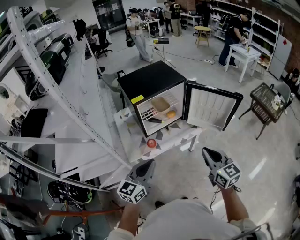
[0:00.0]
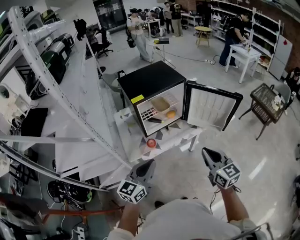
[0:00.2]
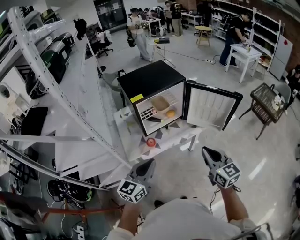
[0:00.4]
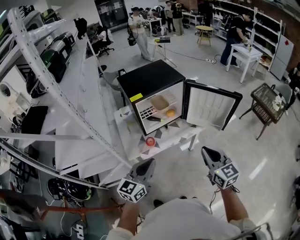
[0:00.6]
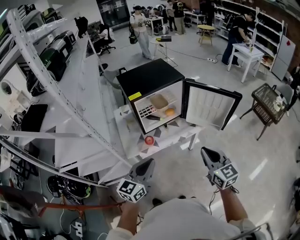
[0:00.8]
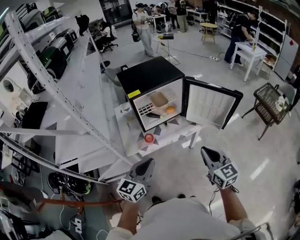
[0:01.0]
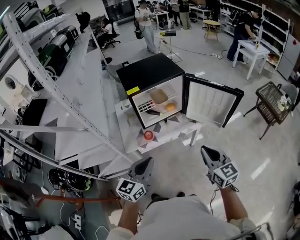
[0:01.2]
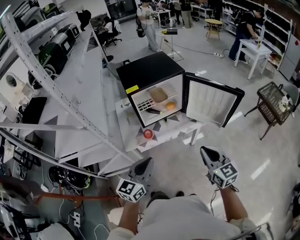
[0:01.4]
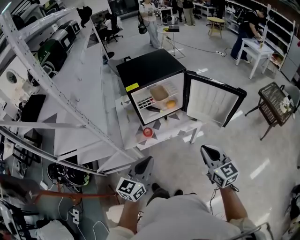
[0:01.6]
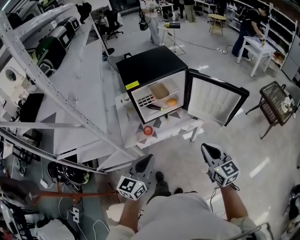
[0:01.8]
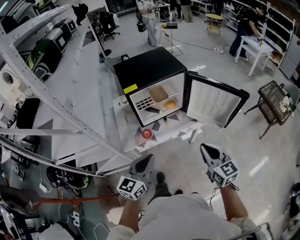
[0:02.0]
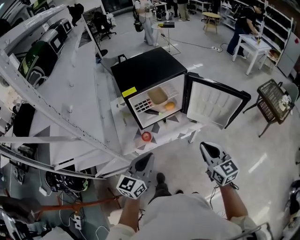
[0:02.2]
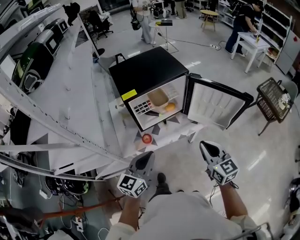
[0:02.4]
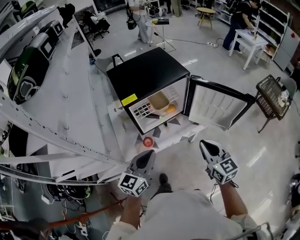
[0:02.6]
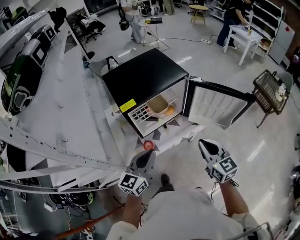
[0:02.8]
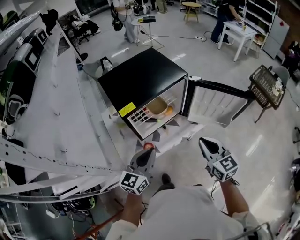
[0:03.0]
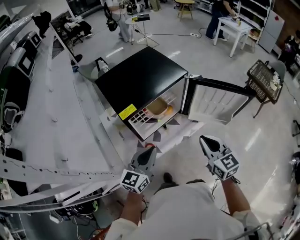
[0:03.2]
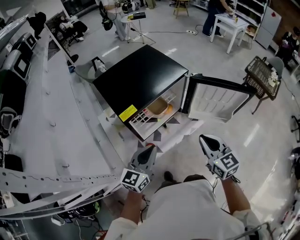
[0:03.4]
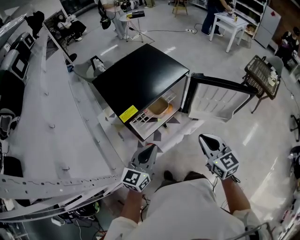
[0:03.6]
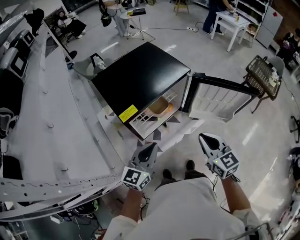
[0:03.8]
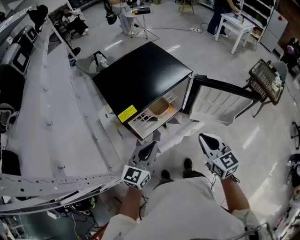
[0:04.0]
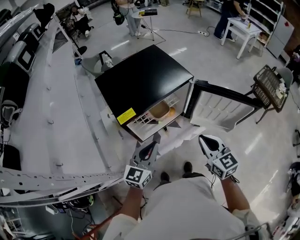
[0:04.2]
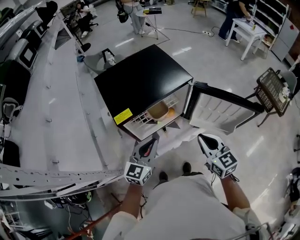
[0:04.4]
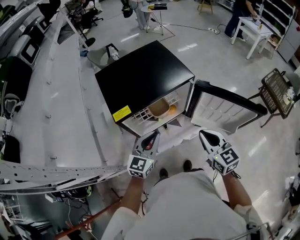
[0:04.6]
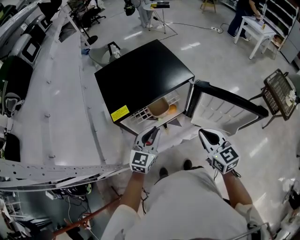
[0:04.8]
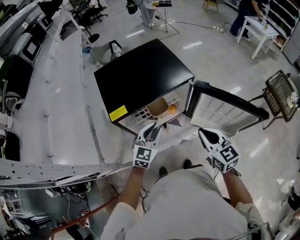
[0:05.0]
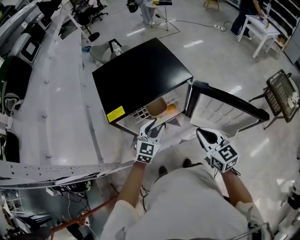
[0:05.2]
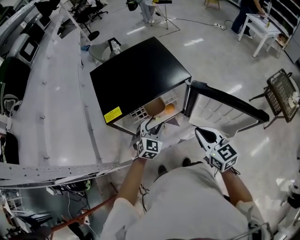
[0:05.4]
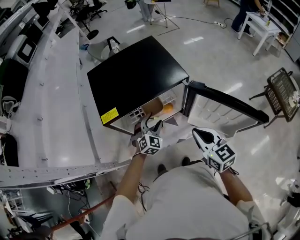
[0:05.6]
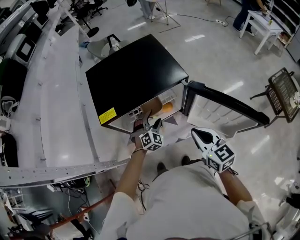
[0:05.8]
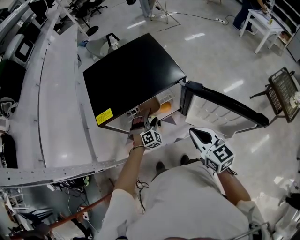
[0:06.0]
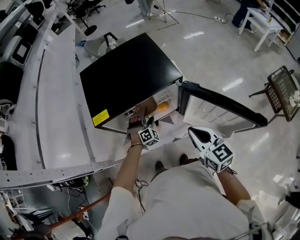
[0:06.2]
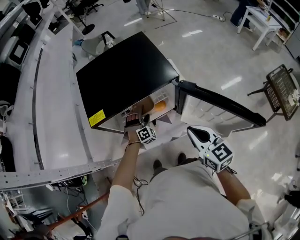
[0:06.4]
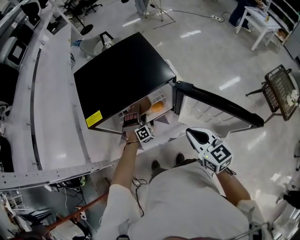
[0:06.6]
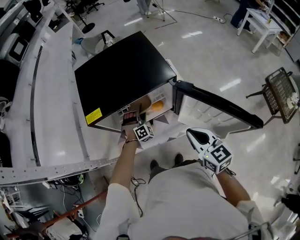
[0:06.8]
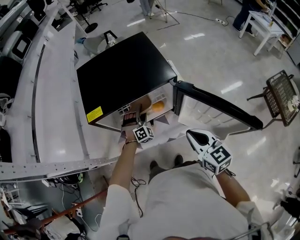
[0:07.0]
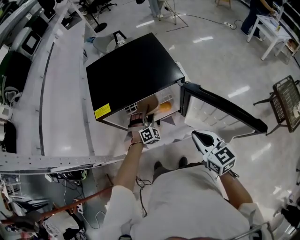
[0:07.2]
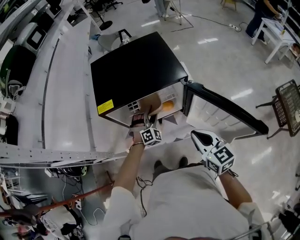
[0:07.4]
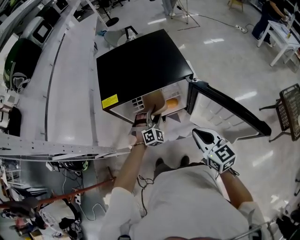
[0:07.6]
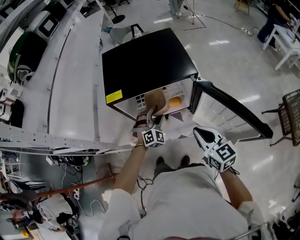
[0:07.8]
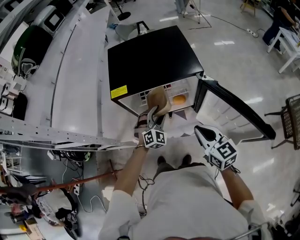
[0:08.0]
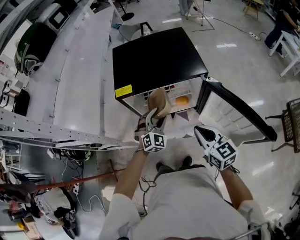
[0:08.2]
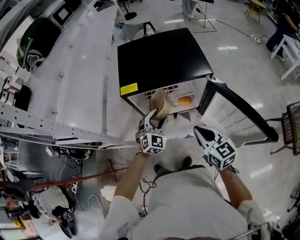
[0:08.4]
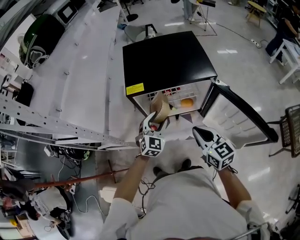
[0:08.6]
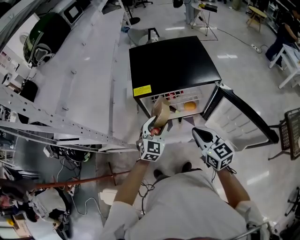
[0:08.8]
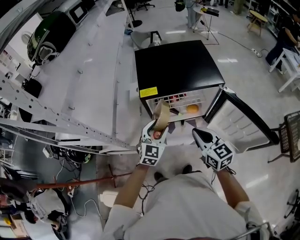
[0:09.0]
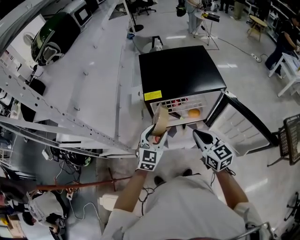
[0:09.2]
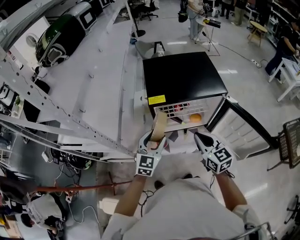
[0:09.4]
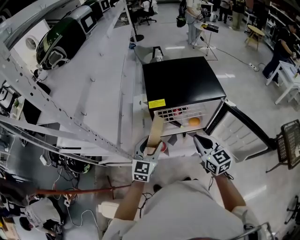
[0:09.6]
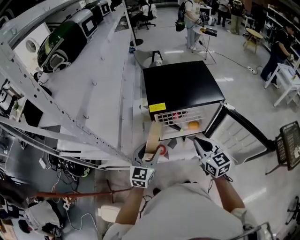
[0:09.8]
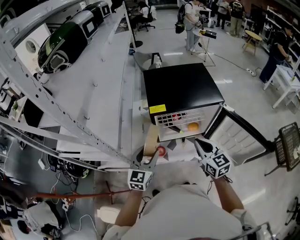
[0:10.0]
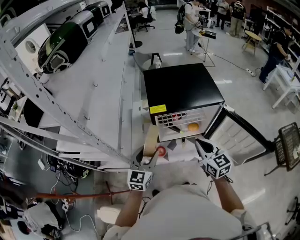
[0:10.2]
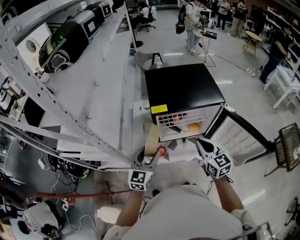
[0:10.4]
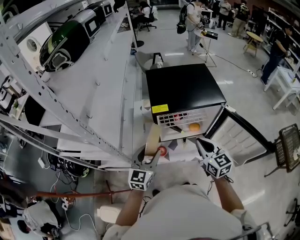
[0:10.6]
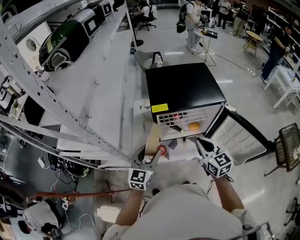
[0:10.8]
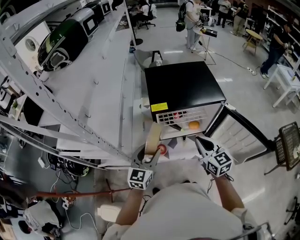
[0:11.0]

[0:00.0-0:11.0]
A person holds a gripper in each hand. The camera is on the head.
0:00.0 to 0:01.6: Both grippers move to the right, approximately 5 cm.
0:01.6 to 0:03.2: The left gripper goes roughly 25 cm forward, while the right gripper shifts roughly 20 cm forward and to the left.
0:03.2 to 0:04.8: The left gripper moves forward and to the right, about 15 cm. The right gripper goes approximately 10 cm forward.
0:04.8 to 0:06.2: The right gripper ends up approximately 5 cm from where it was. Meanwhile the left gripper travels downward and forward by approximately 25 cm, rolls clockwise, seen from behind, by approximately 50 degrees, and opens its fingers.
0:06.2 to 0:07.8: The left gripper travels upward and backward by approximately 10 cm.
0:07.8 to 0:09.4: The left gripper goes about 25 cm to the left, upward and backward, and twists approximately 40 degrees counterclockwise, seen from behind; the right gripper shifts approximately 15 cm to the left.
0:09.4 to 0:11.0: The left gripper moves approximately 5 cm.

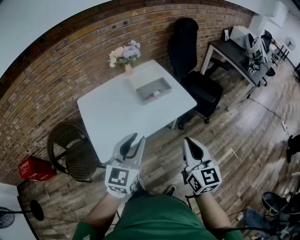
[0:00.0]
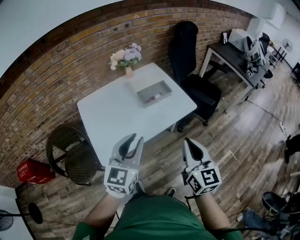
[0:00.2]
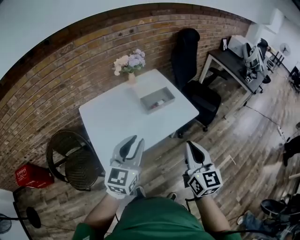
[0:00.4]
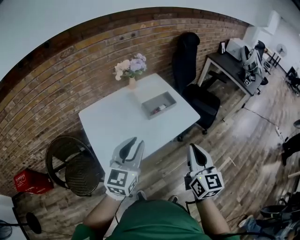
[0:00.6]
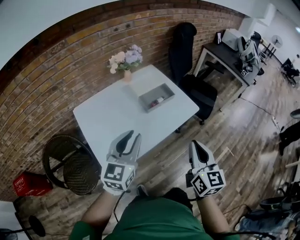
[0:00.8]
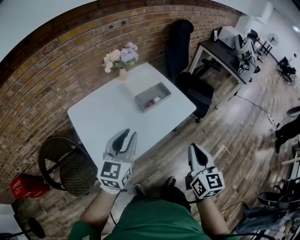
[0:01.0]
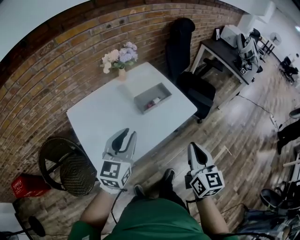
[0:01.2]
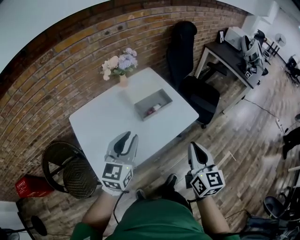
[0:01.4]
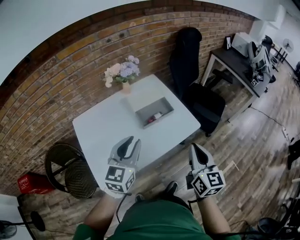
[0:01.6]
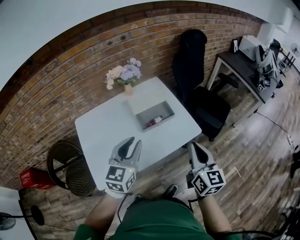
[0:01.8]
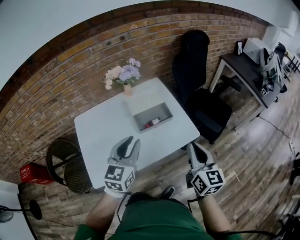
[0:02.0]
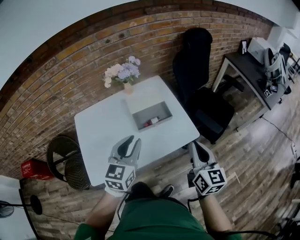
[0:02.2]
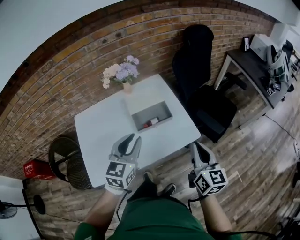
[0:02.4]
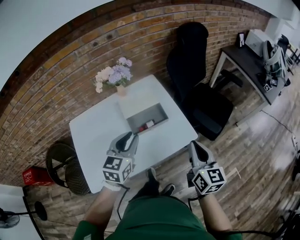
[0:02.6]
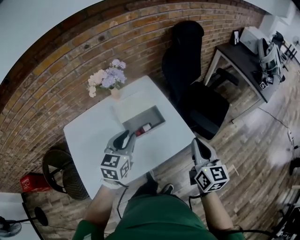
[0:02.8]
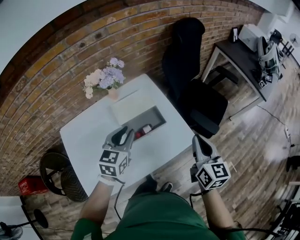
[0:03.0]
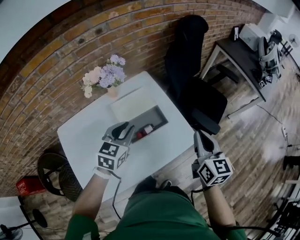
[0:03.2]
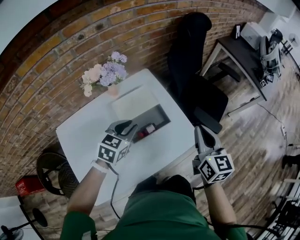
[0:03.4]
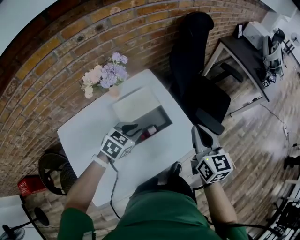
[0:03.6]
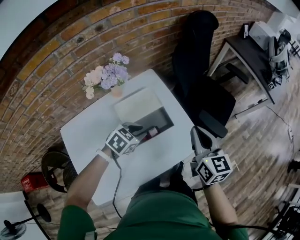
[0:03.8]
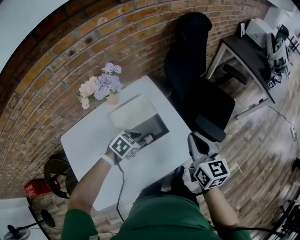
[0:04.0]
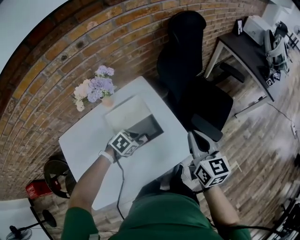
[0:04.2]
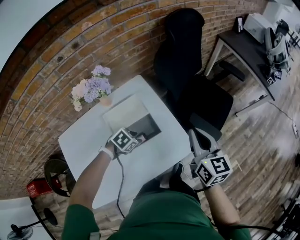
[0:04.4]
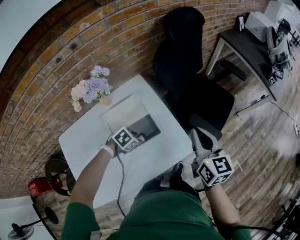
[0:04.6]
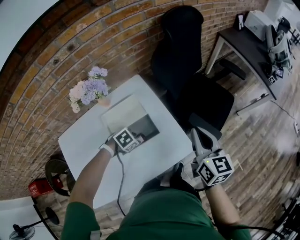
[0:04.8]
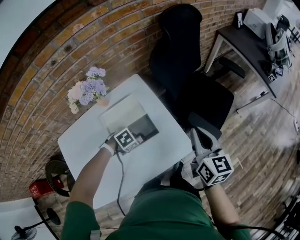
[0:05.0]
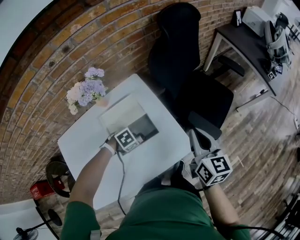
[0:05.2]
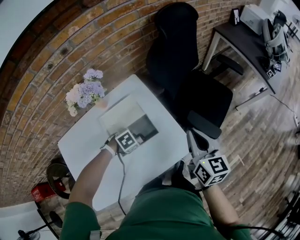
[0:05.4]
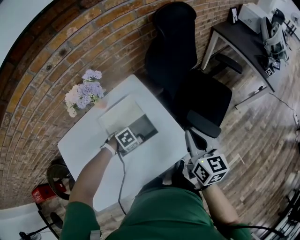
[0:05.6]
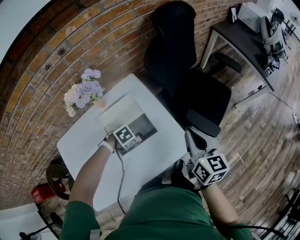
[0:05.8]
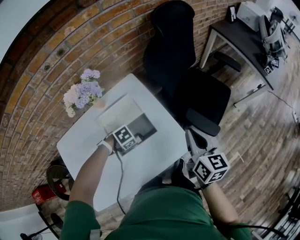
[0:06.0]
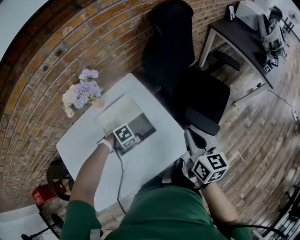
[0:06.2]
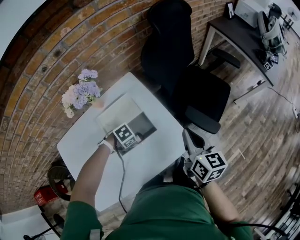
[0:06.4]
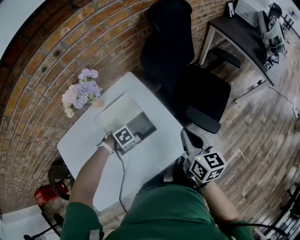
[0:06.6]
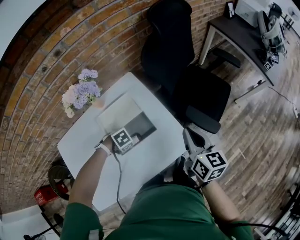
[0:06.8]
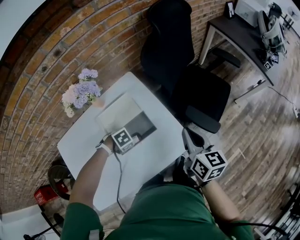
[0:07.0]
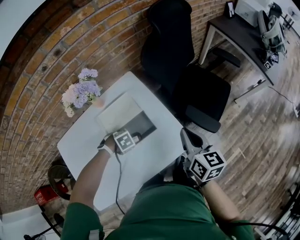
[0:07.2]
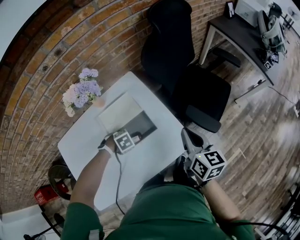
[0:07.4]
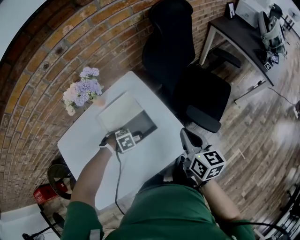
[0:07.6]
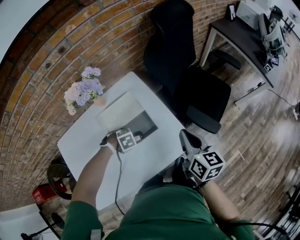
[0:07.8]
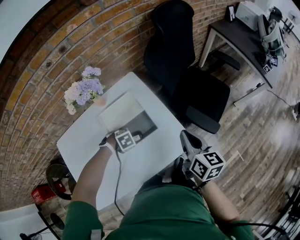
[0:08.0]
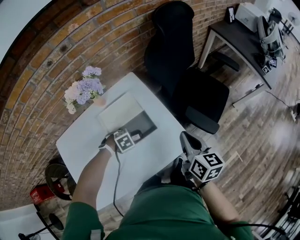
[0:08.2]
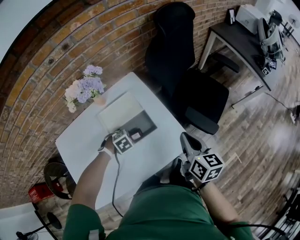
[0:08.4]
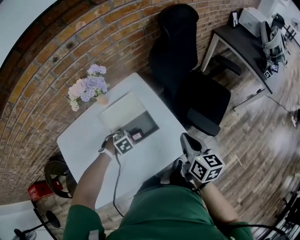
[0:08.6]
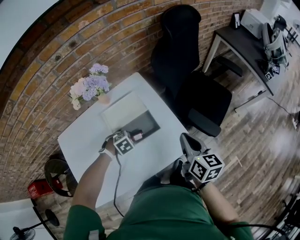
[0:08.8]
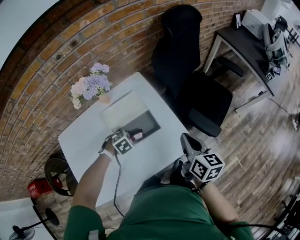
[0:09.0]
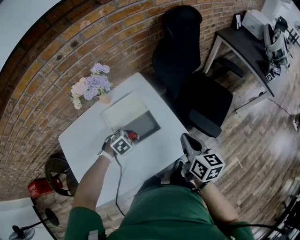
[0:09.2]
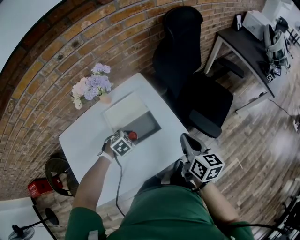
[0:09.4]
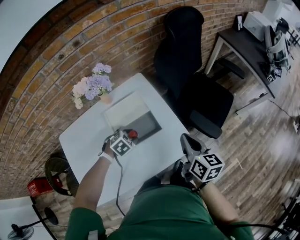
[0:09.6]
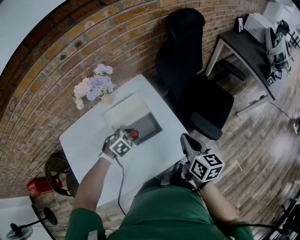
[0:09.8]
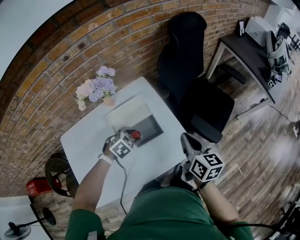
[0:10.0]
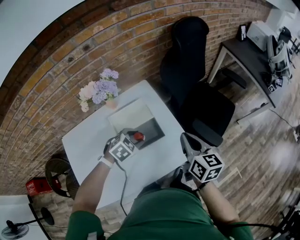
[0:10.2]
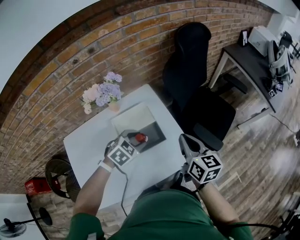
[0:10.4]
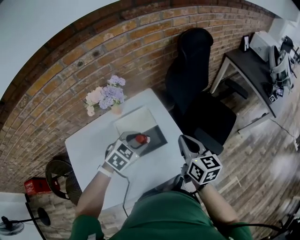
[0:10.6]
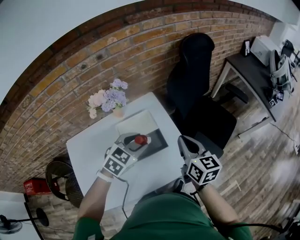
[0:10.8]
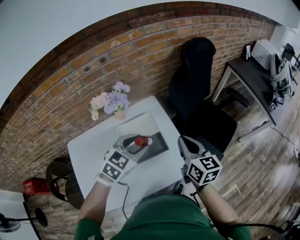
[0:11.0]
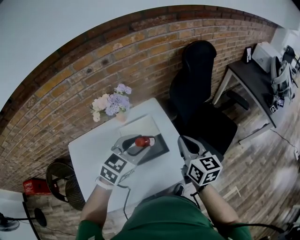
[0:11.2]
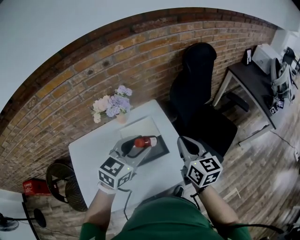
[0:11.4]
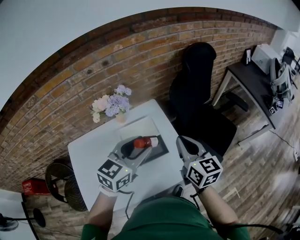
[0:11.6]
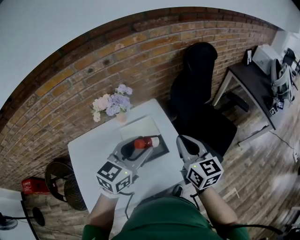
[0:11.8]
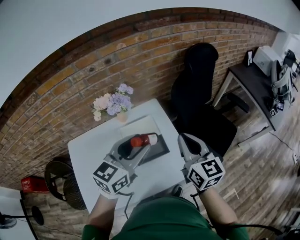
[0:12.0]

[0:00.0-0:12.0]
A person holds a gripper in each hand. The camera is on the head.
0:00.0 to 0:01.6: Both grippers move forward, some 15 cm.
0:01.6 to 0:03.0: The left gripper moves forward, about 20 cm. Meanwhile the right gripper moves forward and to the right, roughly 20 cm.
0:03.0 to 0:04.4: The right gripper goes about 10 cm forward. The left gripper moves downward, roughly 20 cm, and points its fingers approximately 40 degrees further downward.
0:04.4 to 0:06.0: The grippers make only small movements.
0:06.0 to 0:07.6: The left gripper changes its angle by some 20 degrees.
0:07.6 to 0:09.0: The grippers stay close to where they were, moving slightly.
0:09.0 to 0:10.4: The right gripper shifts by about 5 cm; the left gripper goes some 15 cm upward, and turns by approximately 20 degrees.
0:10.4 to 0:12.0: The left gripper moves upward, about 20 cm, and tips its fingers upward by some 40 degrees, while the right gripper moves upward, approximately 10 cm.

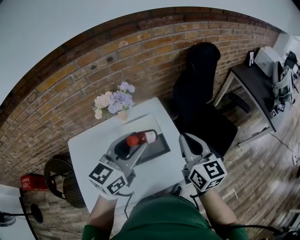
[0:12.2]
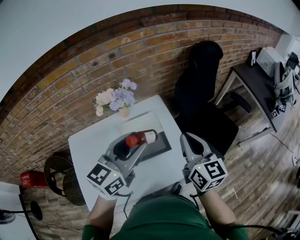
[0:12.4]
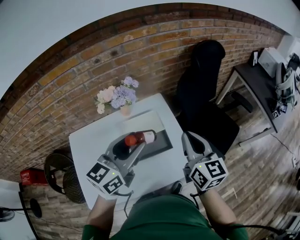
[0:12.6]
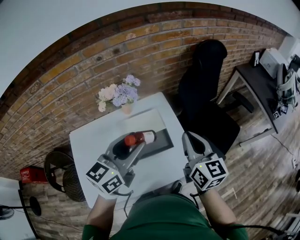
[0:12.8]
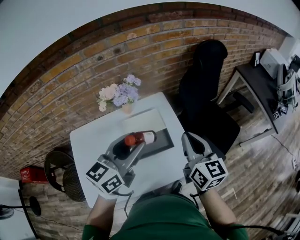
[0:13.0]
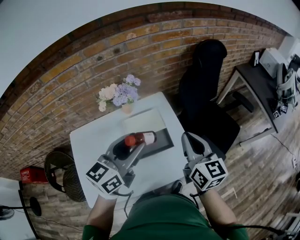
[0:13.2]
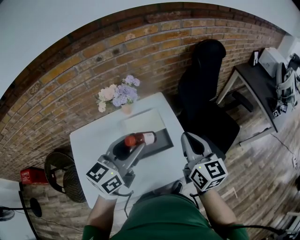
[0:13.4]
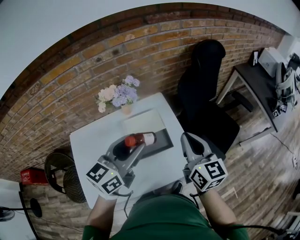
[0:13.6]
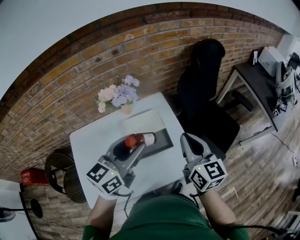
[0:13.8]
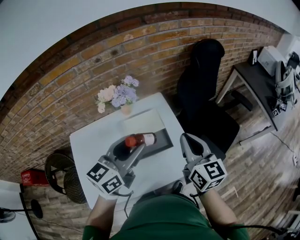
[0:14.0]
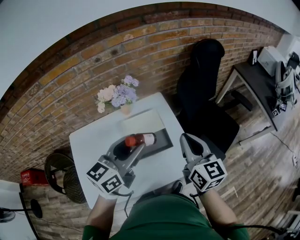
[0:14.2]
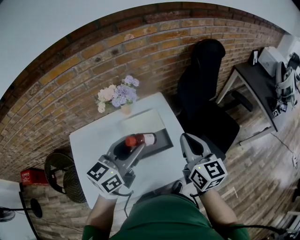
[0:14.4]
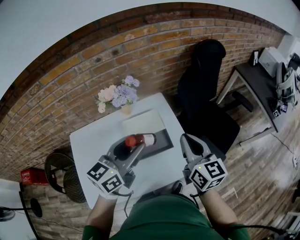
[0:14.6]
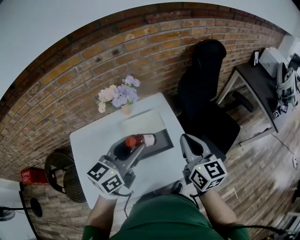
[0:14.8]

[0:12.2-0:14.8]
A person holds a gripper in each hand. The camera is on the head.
0:12.2 to 0:13.4: The grippers move only a little.
0:13.4 to 0:14.8: Neither gripper changes place.
